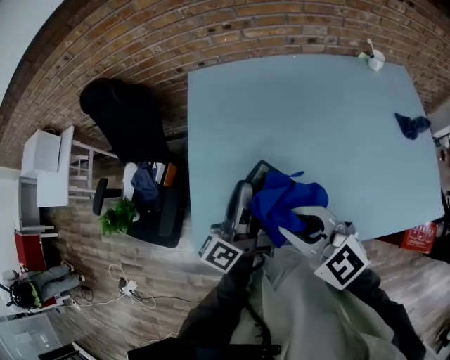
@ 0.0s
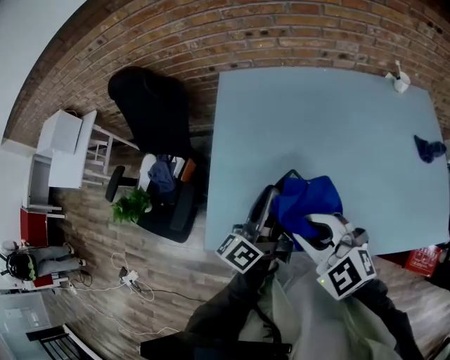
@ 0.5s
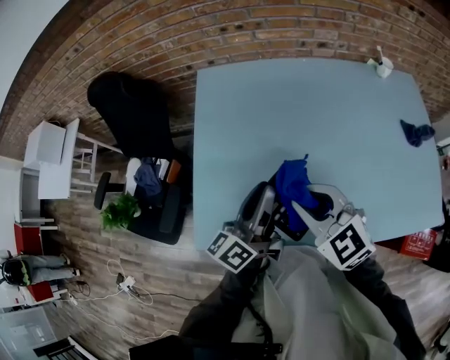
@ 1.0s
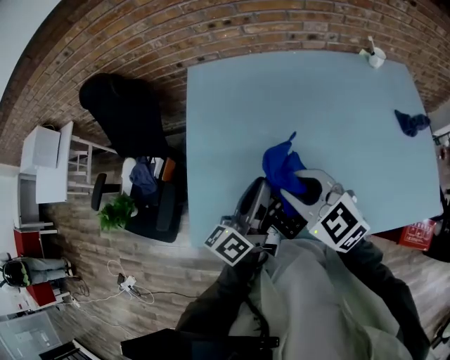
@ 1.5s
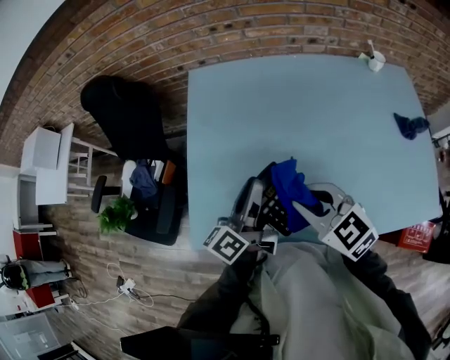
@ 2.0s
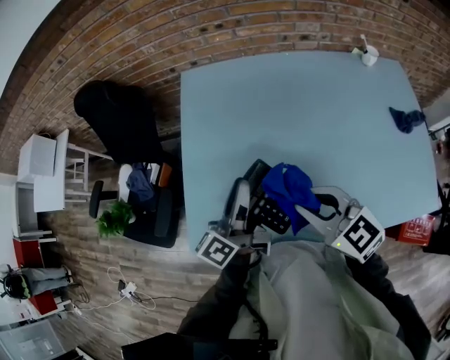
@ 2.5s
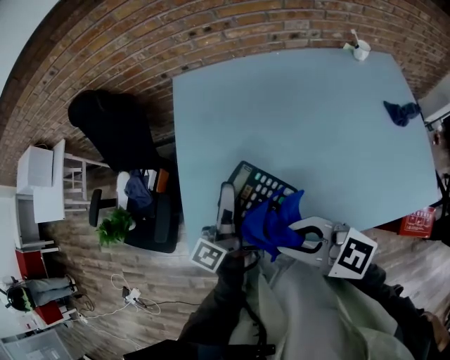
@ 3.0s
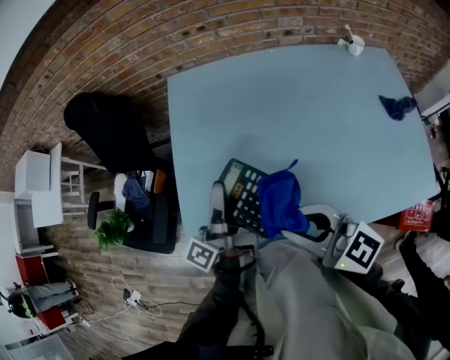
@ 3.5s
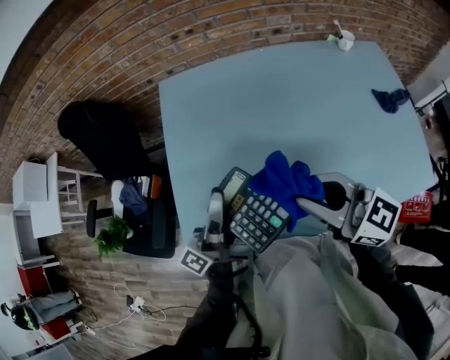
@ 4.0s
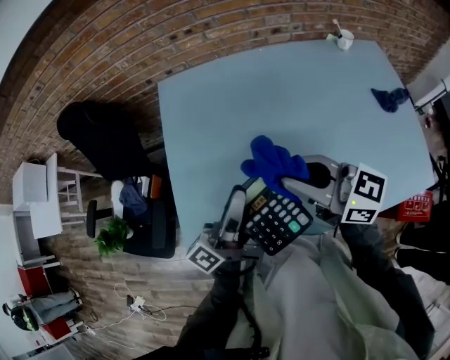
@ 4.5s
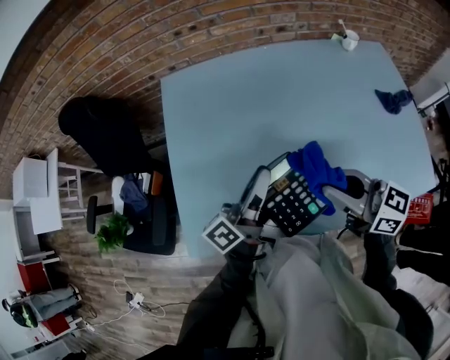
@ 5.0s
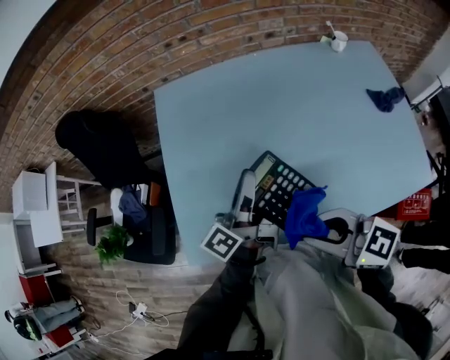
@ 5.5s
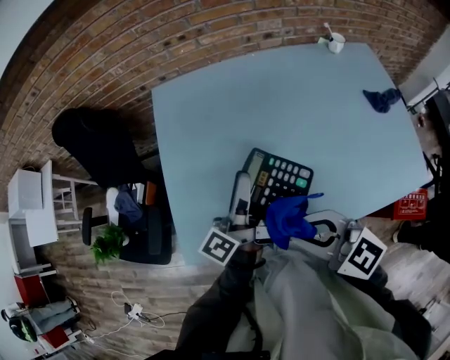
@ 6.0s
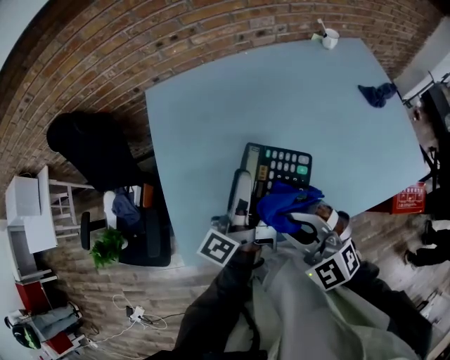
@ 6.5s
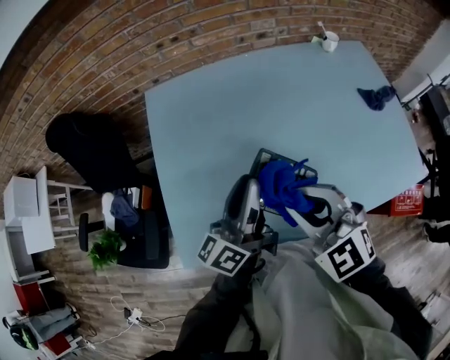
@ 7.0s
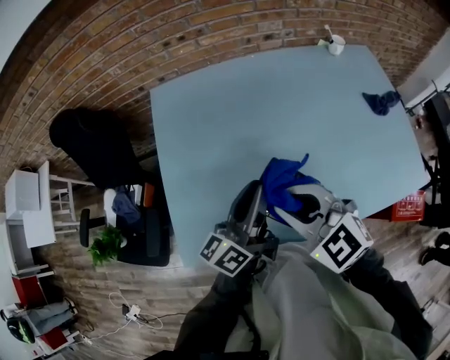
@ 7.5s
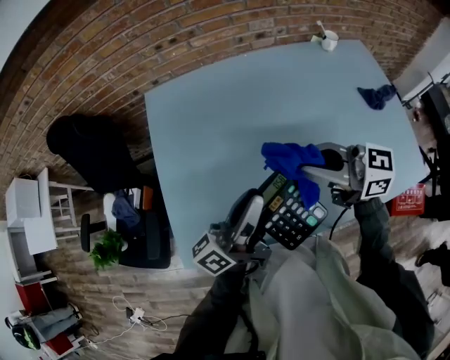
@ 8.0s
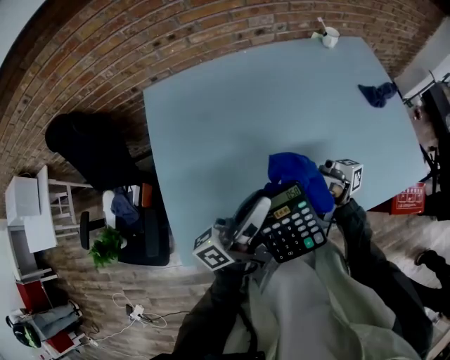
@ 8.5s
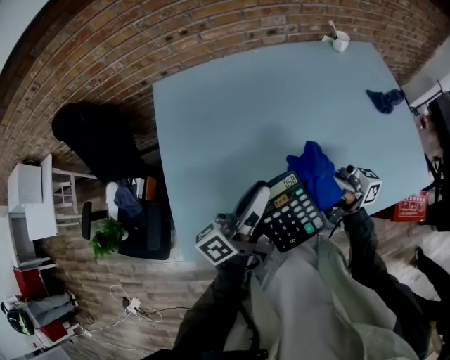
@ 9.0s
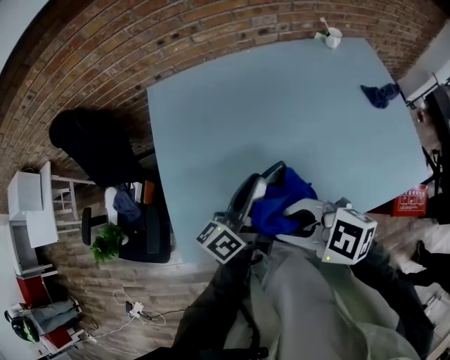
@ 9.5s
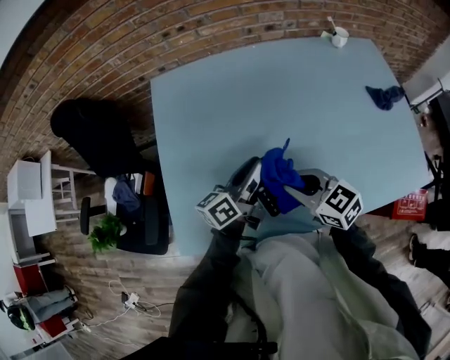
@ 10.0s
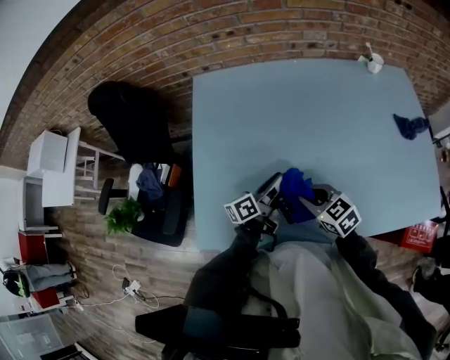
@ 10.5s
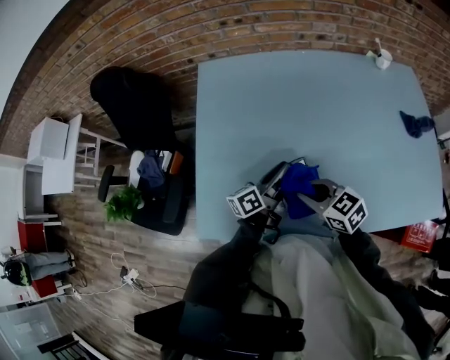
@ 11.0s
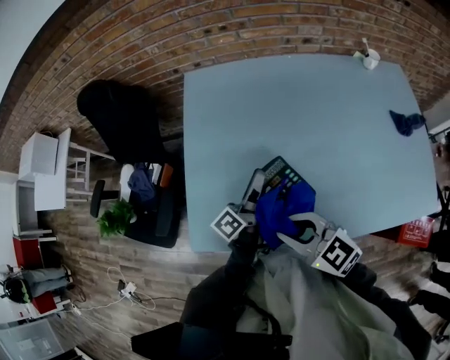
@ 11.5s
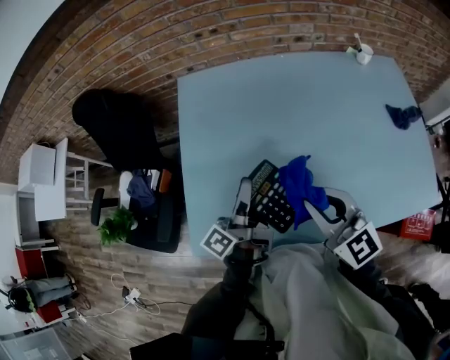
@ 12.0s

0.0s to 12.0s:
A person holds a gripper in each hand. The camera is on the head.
0.0s to 2.0s: The right gripper shifts about 5 cm to the right.
2.0s to 4.0s: Both grippers move upward, some 5 cm. The left gripper changes its angle by roughly 30 degrees. The right gripper swivels about 30 degrees.
4.0s to 6.0s: The left gripper travels to the right by approximately 10 cm, while the right gripper heads backward, covering about 5 cm.
6.0s to 8.0s: The left gripper moves approximately 5 cm, and changes its angle by about 30 degrees. Meanwhile the right gripper goes roughly 15 cm forward and to the right, and rotates some 30 degrees.
8.0s to 10.0s: The left gripper travels downward and forward by some 10 cm, and turns by about 20 degrees, while the right gripper shifts roughly 15 cm downward, and rotates some 30 degrees.
10.0s to 12.0s: The left gripper is displaced to the left by about 10 cm, and changes its angle by some 40 degrees. The right gripper moves upward, roughly 10 cm, and turns by roughly 20 degrees.

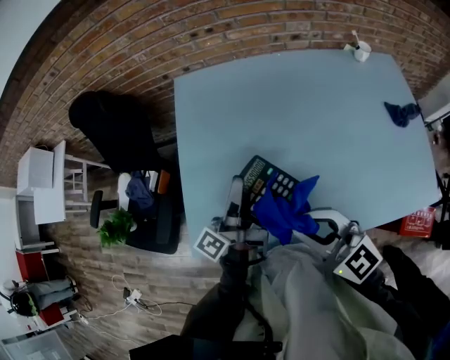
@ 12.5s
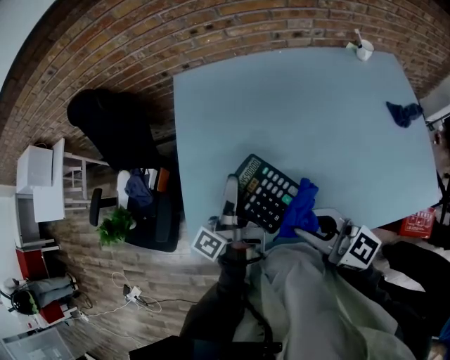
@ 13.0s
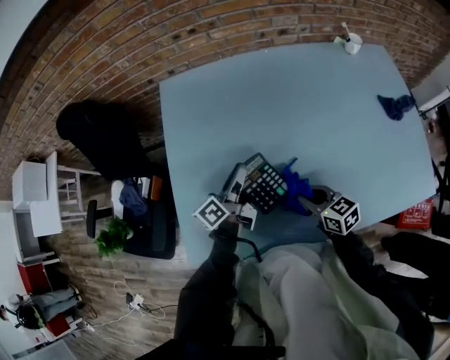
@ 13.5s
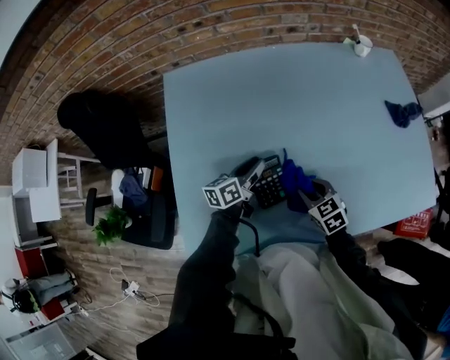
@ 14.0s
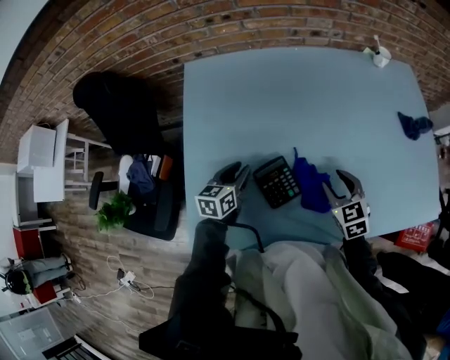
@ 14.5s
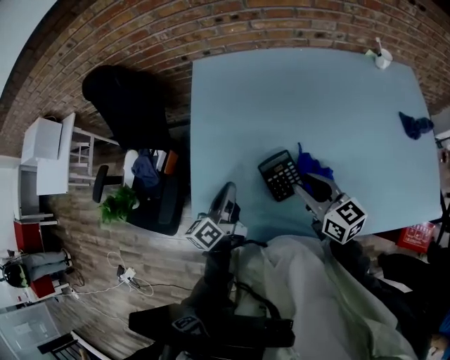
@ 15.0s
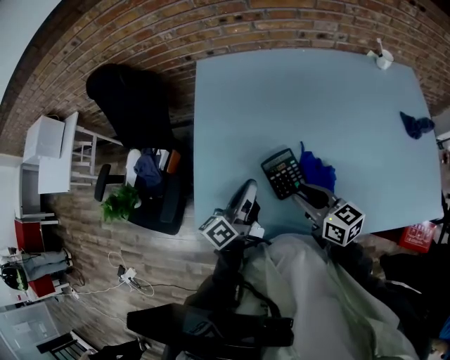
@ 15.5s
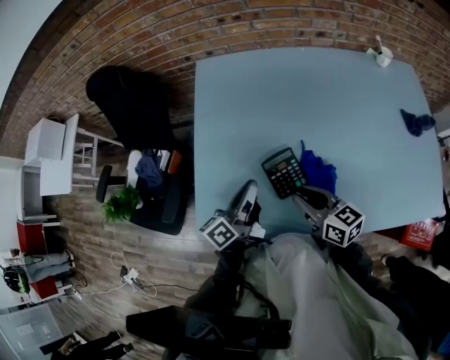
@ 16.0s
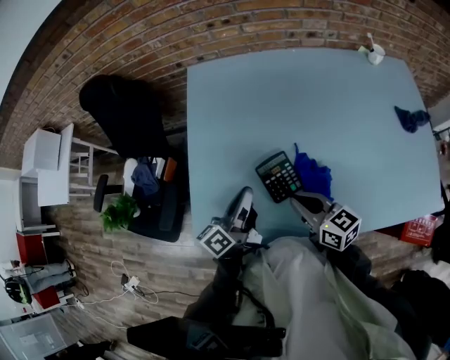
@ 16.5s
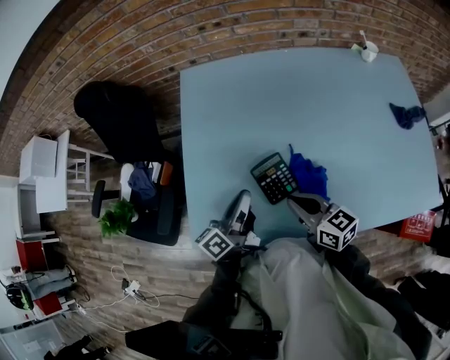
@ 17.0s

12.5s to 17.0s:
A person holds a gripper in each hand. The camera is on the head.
12.5s to 14.5s: Both grippers travel together downward, some 20 cm. The right gripper rotates about 40 degrees, and opens its fingers, while the left gripper tips its fingers downward by about 50 degrees.
14.5s to 17.0s: The right gripper shifts about 15 cm to the left, turns by some 40 degrees, and closes up, while the left gripper moves backward and upward, about 15 cm, rotates roughly 40 degrees, and closes its fingers.

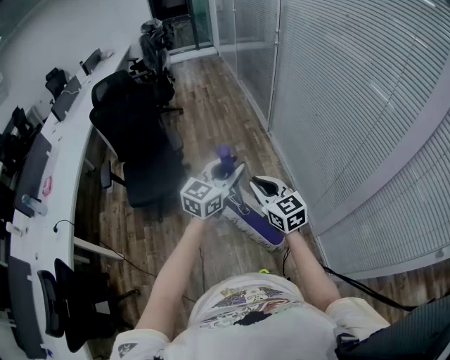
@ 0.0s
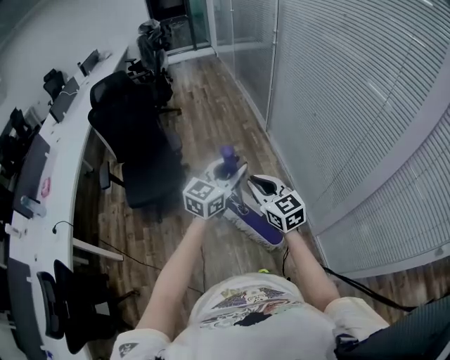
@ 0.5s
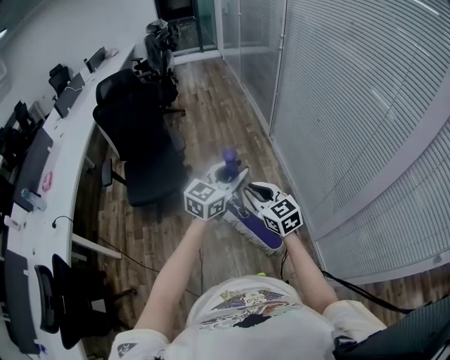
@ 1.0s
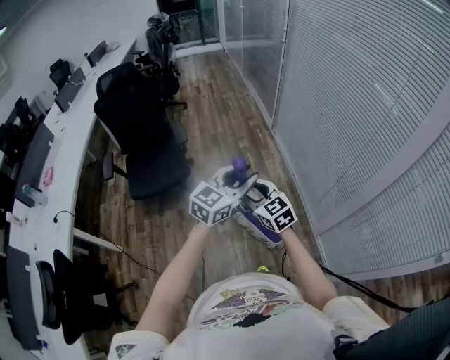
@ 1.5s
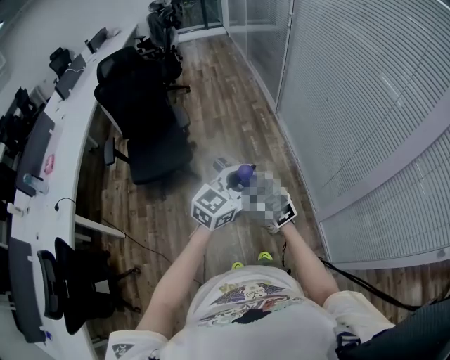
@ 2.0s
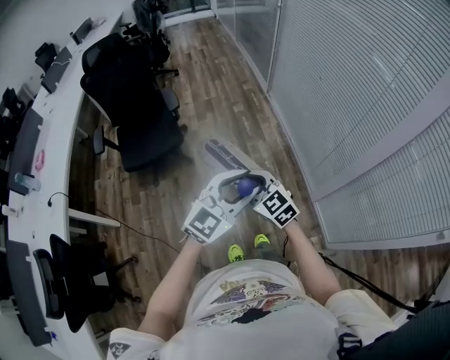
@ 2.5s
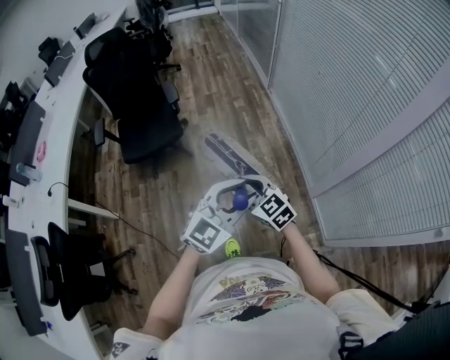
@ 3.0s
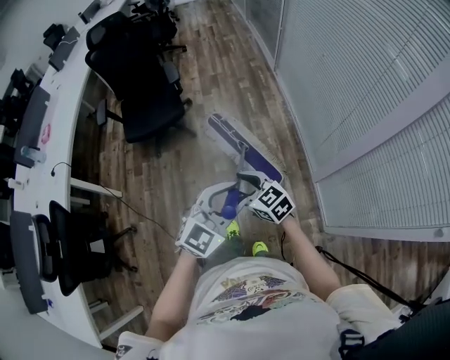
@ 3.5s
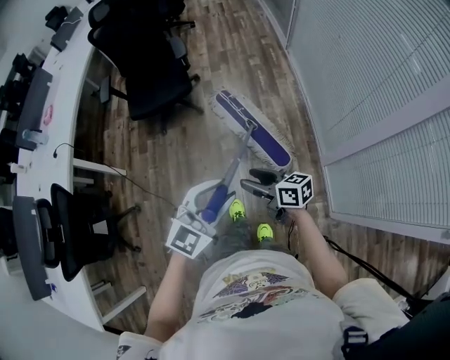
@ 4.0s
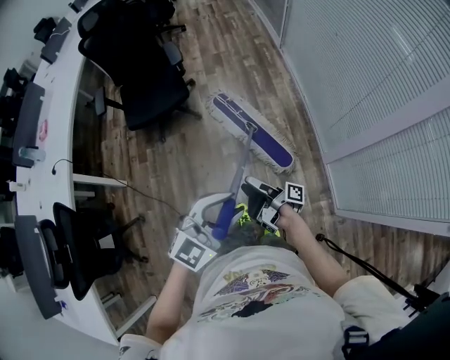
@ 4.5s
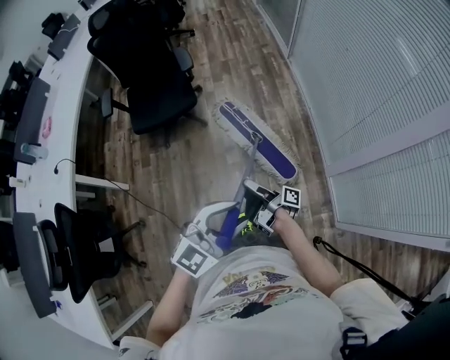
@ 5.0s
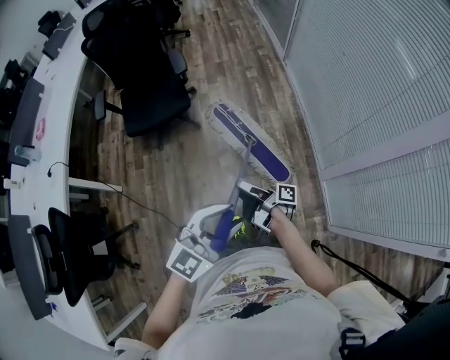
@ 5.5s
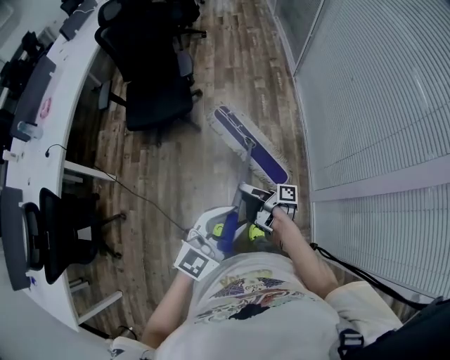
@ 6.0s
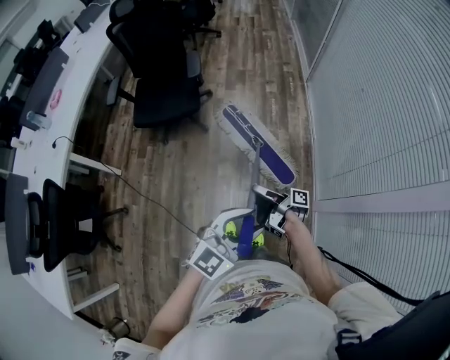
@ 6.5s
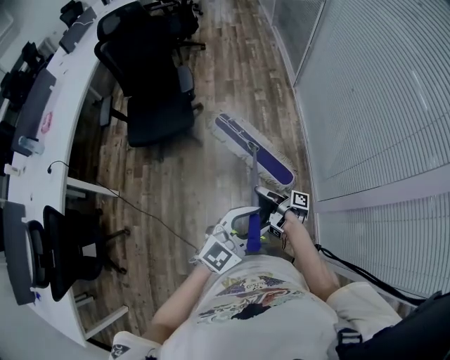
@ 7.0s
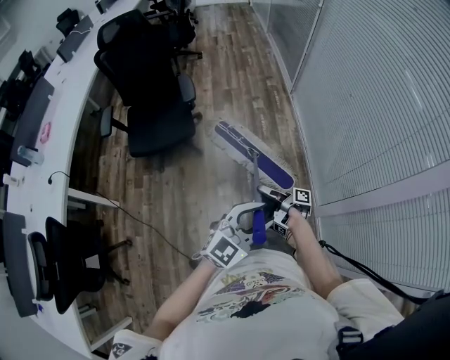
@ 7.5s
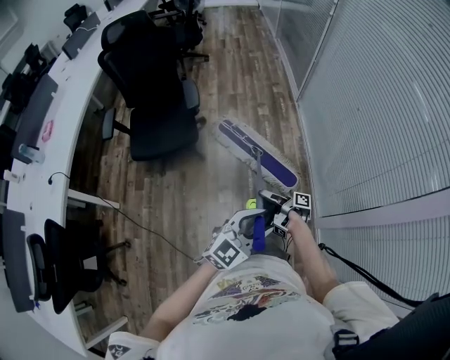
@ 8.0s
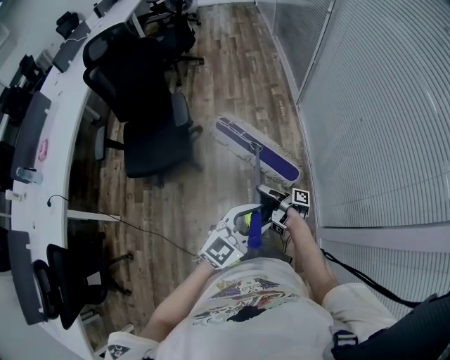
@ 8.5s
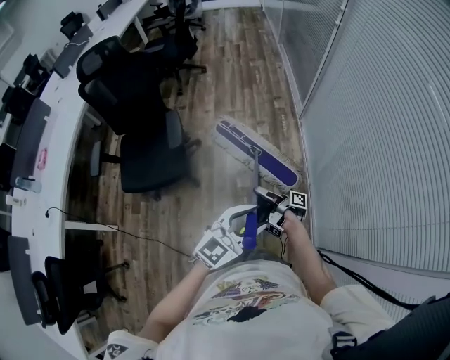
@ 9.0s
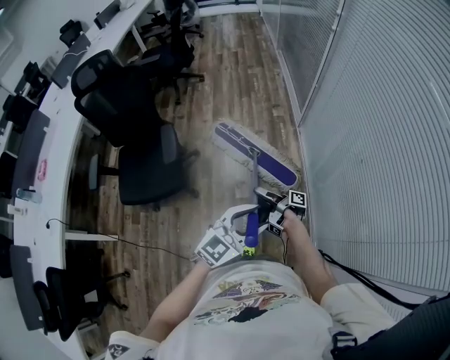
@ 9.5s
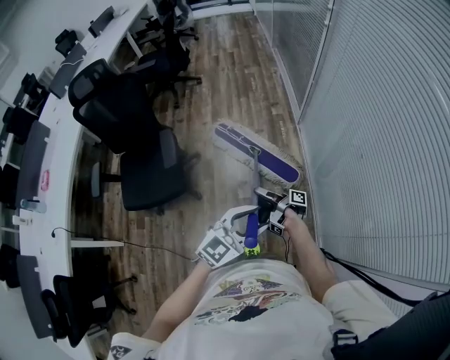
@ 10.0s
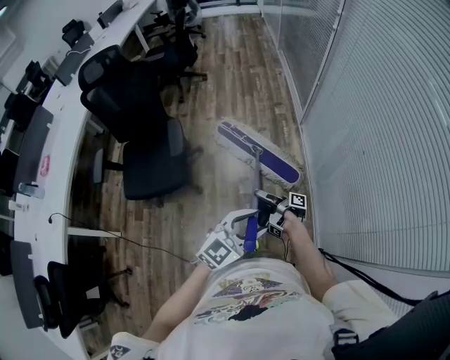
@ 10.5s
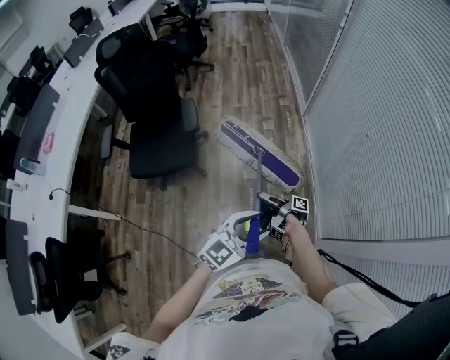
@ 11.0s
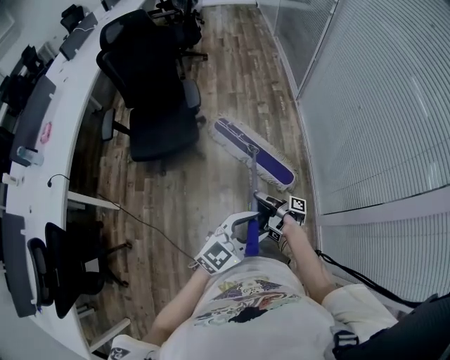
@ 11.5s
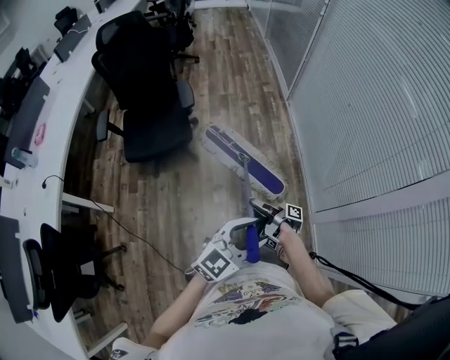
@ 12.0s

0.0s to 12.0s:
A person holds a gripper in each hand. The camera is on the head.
0.0s to 2.0s: The left gripper ends up about 10 cm from where it was.
2.0s to 4.0s: The left gripper changes place by approximately 25 cm, and turns by roughly 20 degrees.
4.0s to 6.0s: The left gripper moves some 15 cm.
6.0s to 8.0s: The left gripper moves about 15 cm.
8.0s to 10.0s: The left gripper shifts by about 40 cm.
10.0s to 12.0s: The left gripper changes place by approximately 50 cm.
